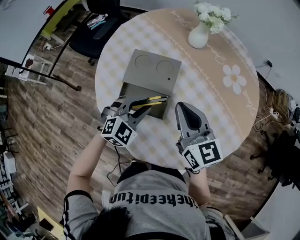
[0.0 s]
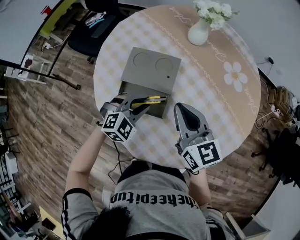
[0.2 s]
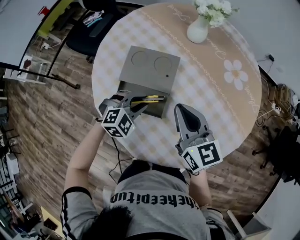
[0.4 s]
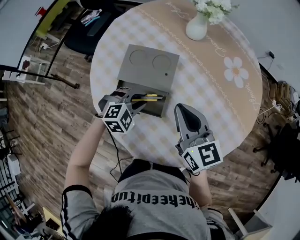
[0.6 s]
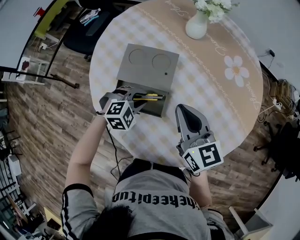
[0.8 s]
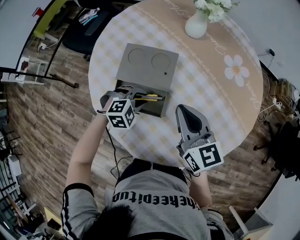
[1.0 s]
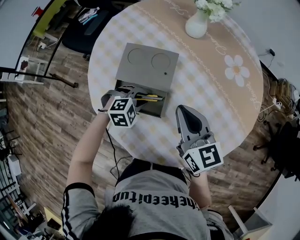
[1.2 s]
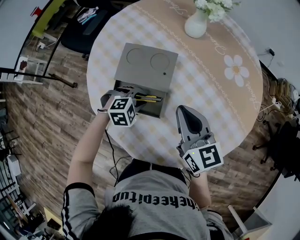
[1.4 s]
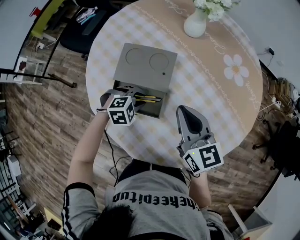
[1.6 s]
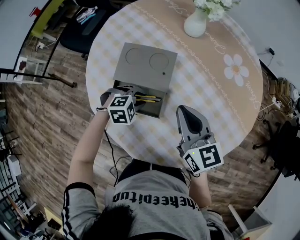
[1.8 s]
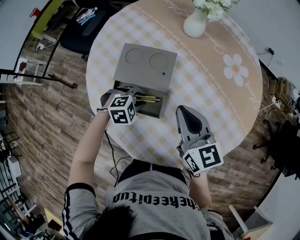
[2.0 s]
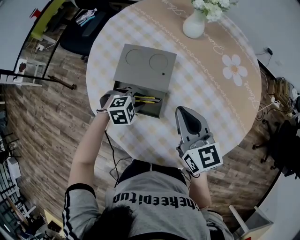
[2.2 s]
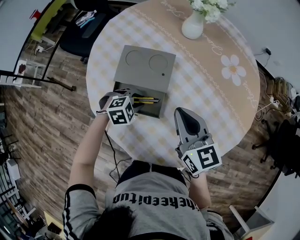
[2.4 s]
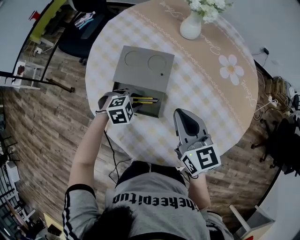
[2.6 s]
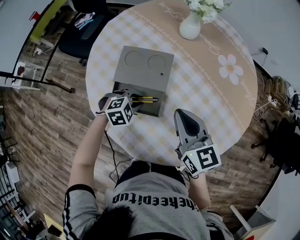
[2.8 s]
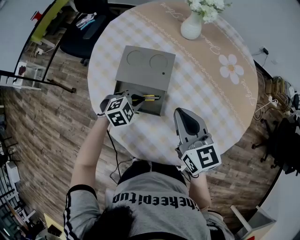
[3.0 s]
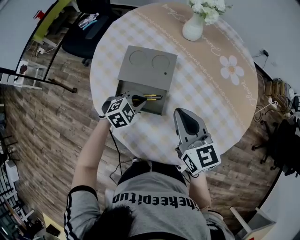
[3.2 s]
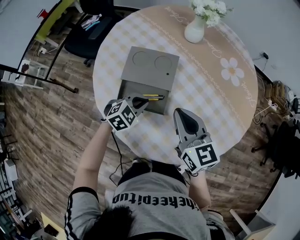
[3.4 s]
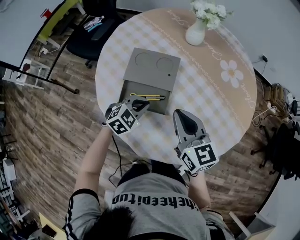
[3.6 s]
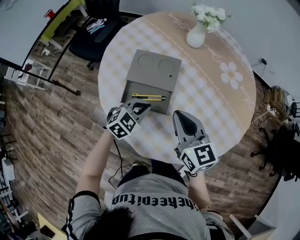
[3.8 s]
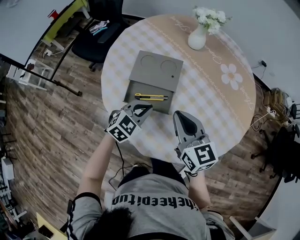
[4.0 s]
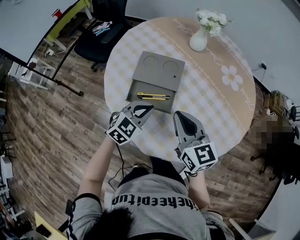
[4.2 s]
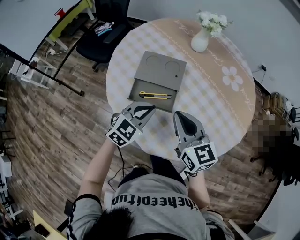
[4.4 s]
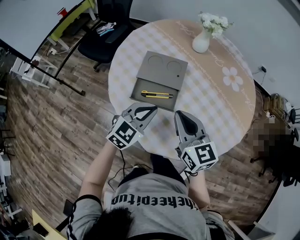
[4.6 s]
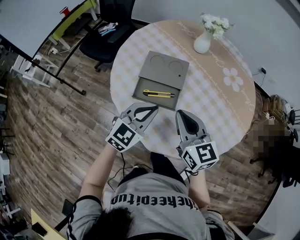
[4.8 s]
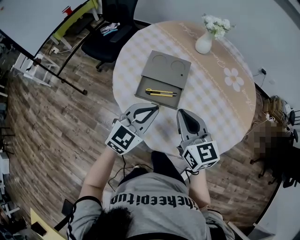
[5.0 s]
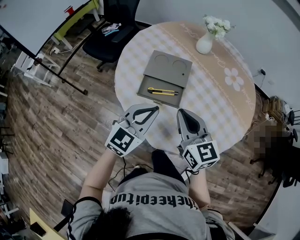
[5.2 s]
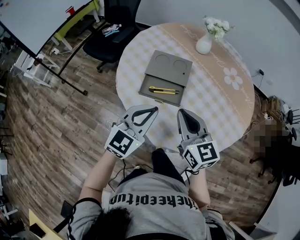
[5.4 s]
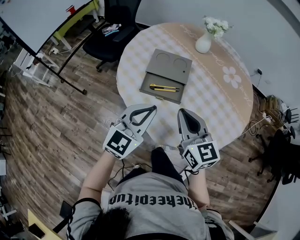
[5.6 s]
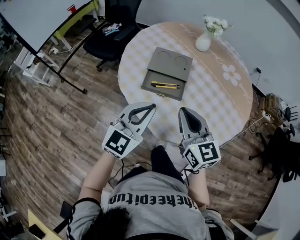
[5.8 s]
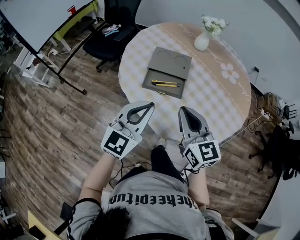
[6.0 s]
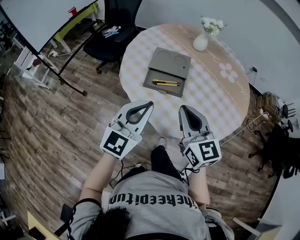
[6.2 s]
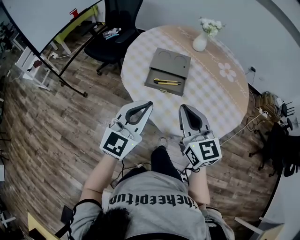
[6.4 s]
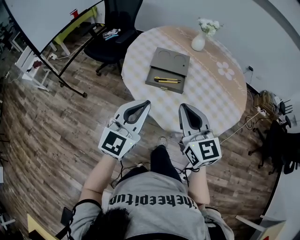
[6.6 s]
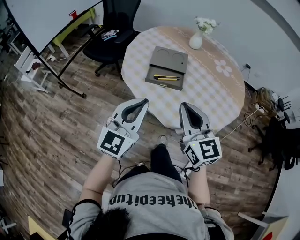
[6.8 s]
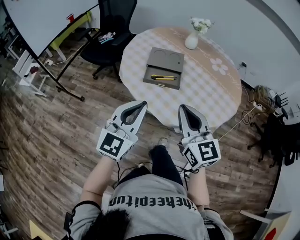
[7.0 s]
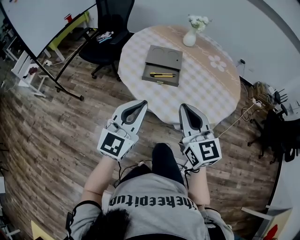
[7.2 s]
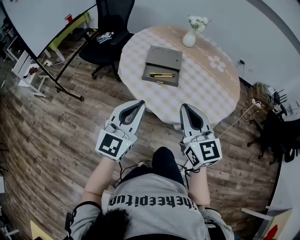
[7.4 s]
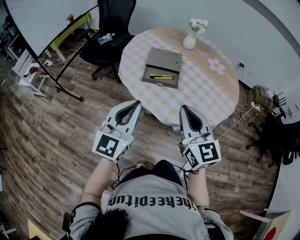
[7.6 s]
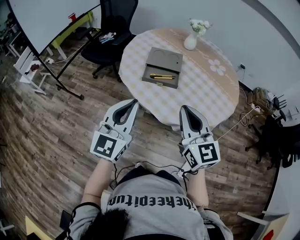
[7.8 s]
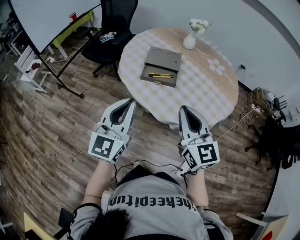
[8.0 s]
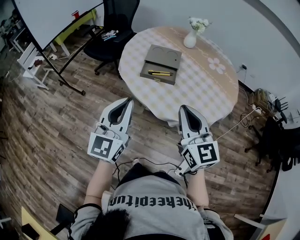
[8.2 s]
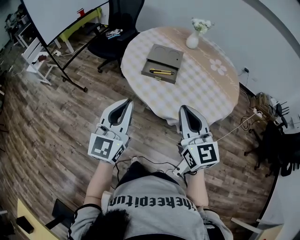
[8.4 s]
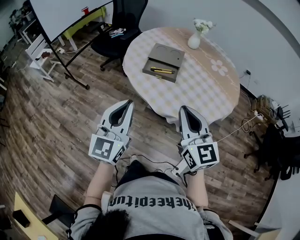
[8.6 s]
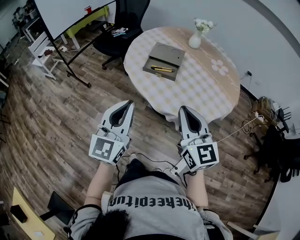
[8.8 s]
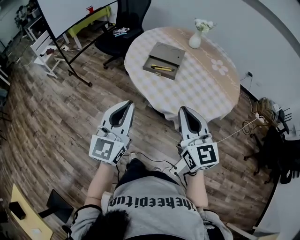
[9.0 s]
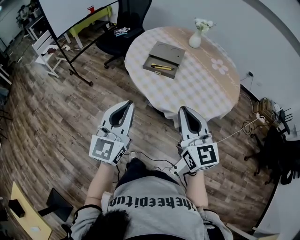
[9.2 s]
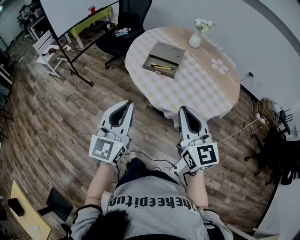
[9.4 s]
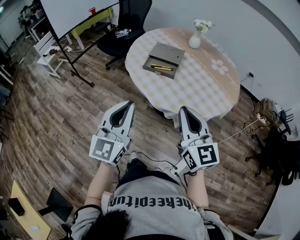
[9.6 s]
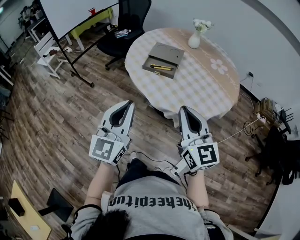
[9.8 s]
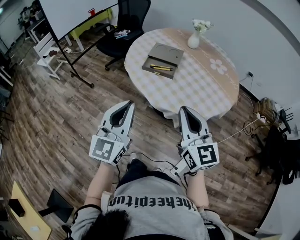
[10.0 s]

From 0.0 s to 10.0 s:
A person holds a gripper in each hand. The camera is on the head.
From 0.0 s to 1.4 s: The left gripper travels downward by some 15 cm, and rotates approximately 30 degrees.
From 1.4 s to 2.8 s: There are only small adjustments of the grippers.
From 2.8 s to 4.2 s: The right gripper travels backward by some 5 cm, while the left gripper travels upward and backward by approximately 15 cm, swivels approximately 40 degrees, and closes up.
From 4.2 s to 5.8 s: The right gripper shifts approximately 10 cm backward. Meanwhile the left gripper goes roughly 20 cm upward and backward, and rotates approximately 30 degrees.
From 5.8 s to 7.2 s: The right gripper is displaced backward by roughly 15 cm; the left gripper moves backward and to the left, some 15 cm.
From 7.2 s to 8.6 s: The right gripper travels backward and to the right by roughly 10 cm; the left gripper shifts approximately 10 cm backward.
From 8.6 s to 10.0 s: The grippers both shift backward by some 5 cm.

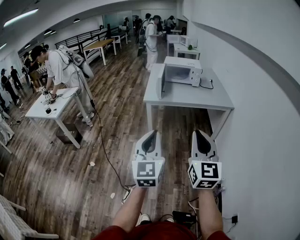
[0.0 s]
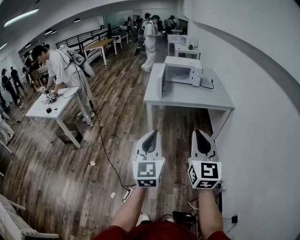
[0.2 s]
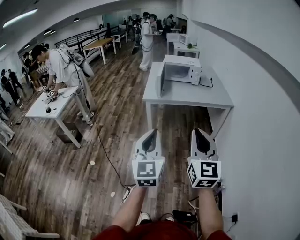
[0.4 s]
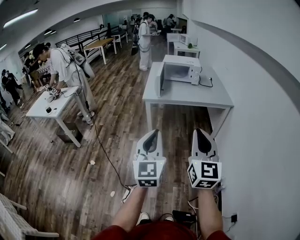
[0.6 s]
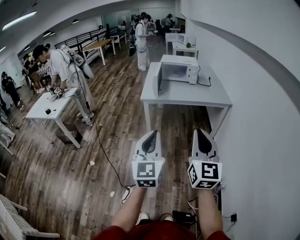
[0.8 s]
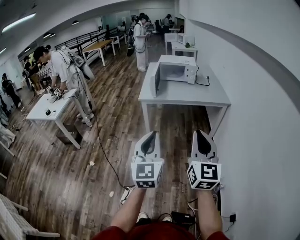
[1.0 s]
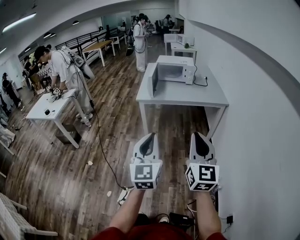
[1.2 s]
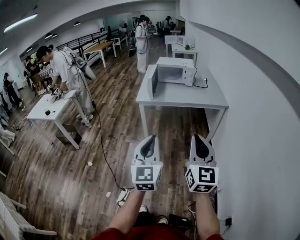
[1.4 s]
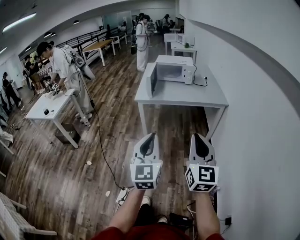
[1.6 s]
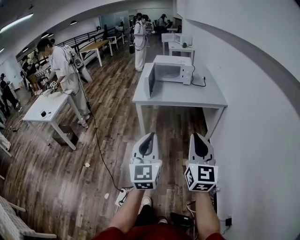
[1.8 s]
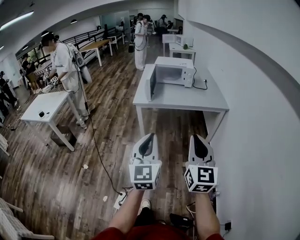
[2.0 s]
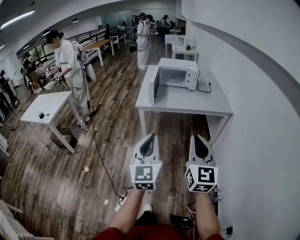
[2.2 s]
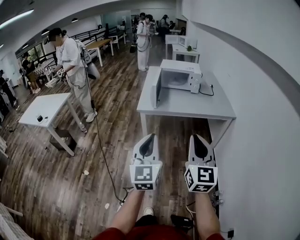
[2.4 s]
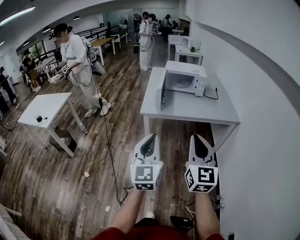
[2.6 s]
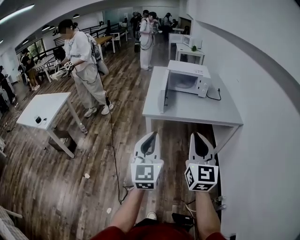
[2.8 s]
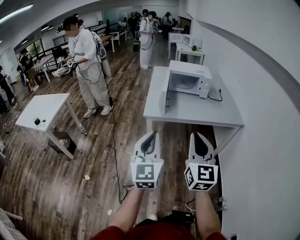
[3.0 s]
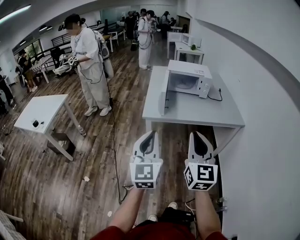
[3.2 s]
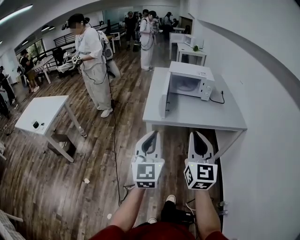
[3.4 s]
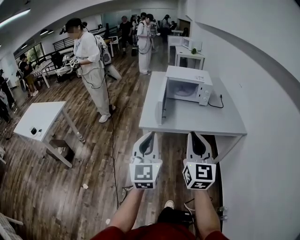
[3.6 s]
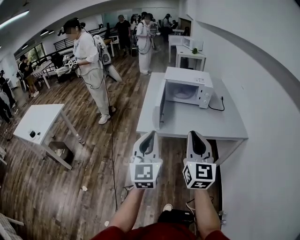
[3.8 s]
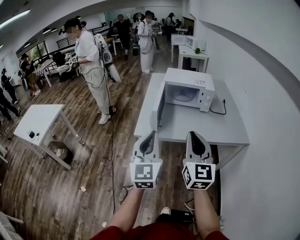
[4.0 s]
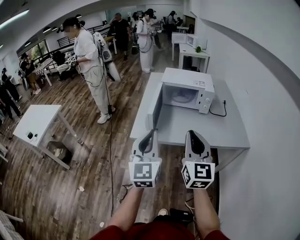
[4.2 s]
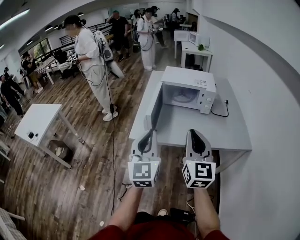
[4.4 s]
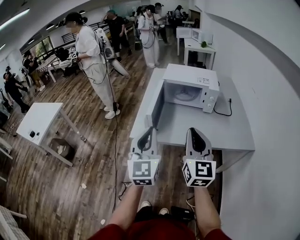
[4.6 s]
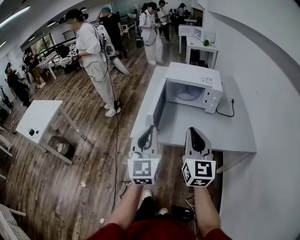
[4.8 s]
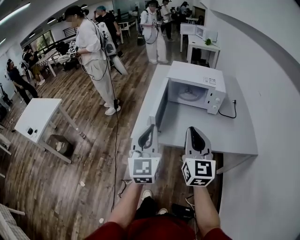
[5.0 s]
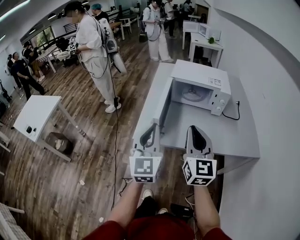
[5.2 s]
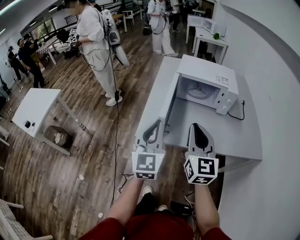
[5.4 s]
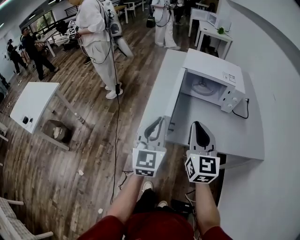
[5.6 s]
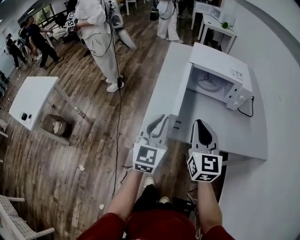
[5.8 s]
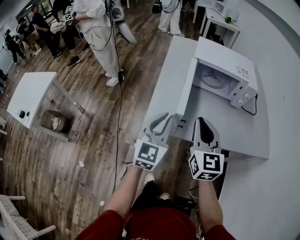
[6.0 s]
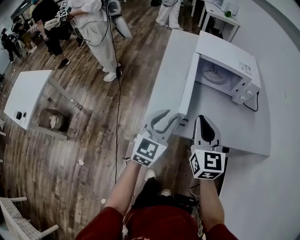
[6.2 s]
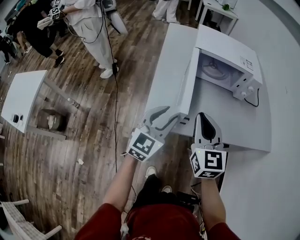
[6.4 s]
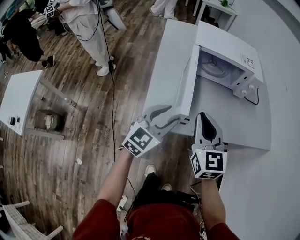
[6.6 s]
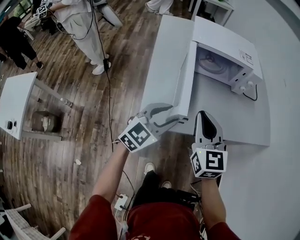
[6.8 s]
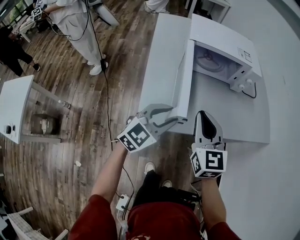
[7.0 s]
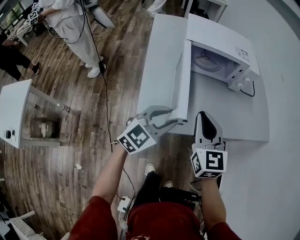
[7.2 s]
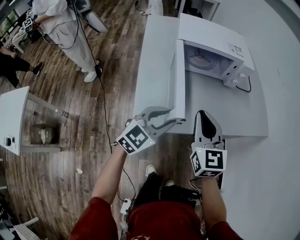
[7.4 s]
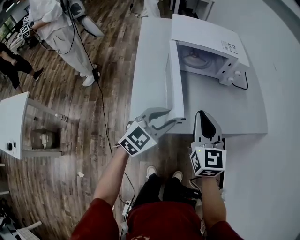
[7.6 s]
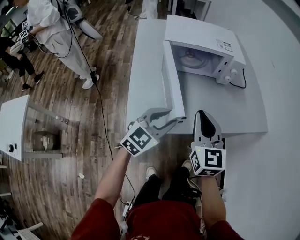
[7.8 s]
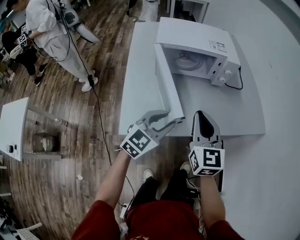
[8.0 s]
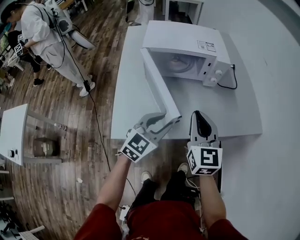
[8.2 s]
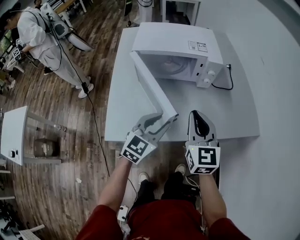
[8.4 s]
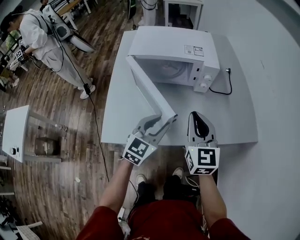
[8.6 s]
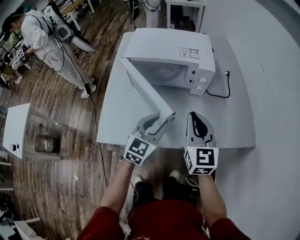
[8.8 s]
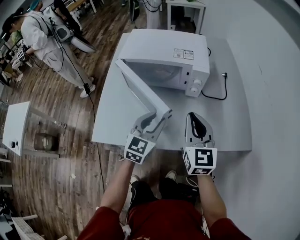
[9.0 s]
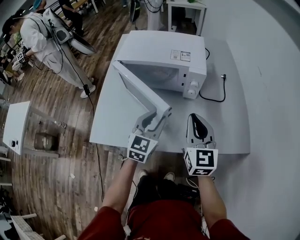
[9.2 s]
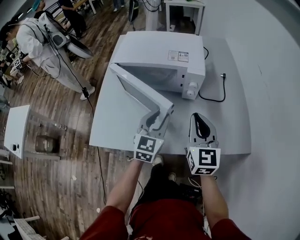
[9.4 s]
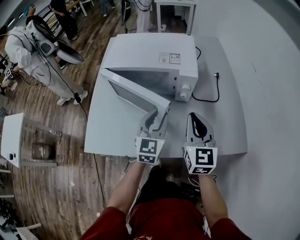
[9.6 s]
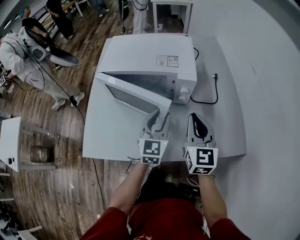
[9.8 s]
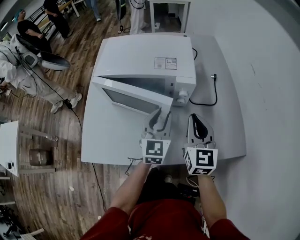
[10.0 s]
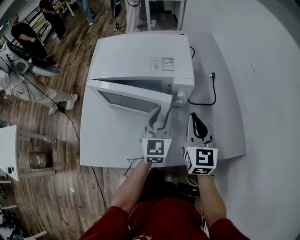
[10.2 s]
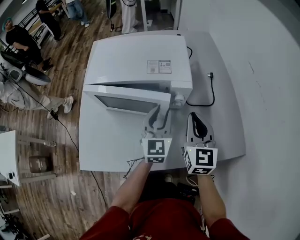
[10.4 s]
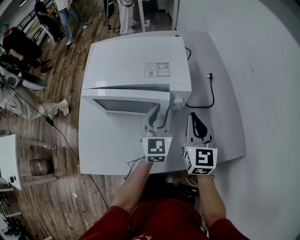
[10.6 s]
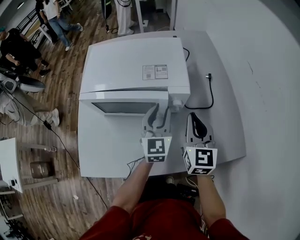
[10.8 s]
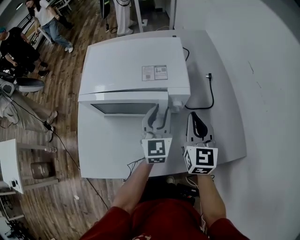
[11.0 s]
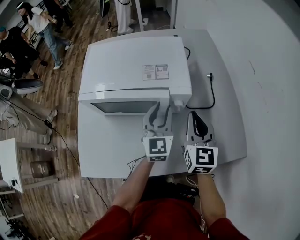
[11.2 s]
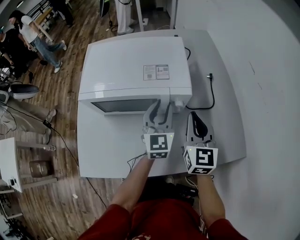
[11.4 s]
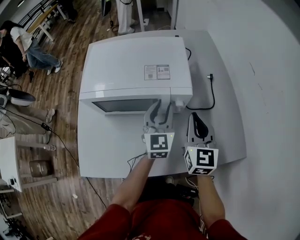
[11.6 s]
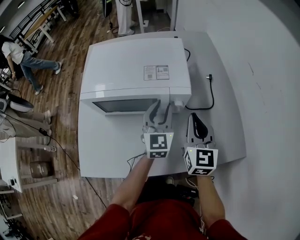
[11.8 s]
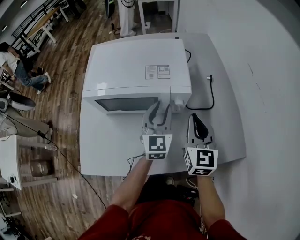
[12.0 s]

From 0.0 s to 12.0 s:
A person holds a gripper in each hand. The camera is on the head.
From 0.0 s to 1.6 s: The grippers both shift to the right by roughly 10 cm.
From 1.6 s to 3.0 s: Both grippers travel together forward and to the left, approximately 30 cm.
From 3.0 s to 4.4 s: Both grippers move forward, about 25 cm.
From 4.4 s to 6.0 s: The right gripper shifts approximately 25 cm forward, to the left and downward, while the left gripper moves forward, downward and to the left, some 25 cm.
From 6.0 s to 7.6 s: The left gripper is displaced downward by some 10 cm, changes its angle by approximately 40 degrees, and opens its fingers. Meanwhile the right gripper shifts by about 5 cm.
From 7.6 s to 9.0 s: Both grippers travel together to the right and forward, approximately 25 cm. The left gripper turns by about 30 degrees.
From 9.0 s to 10.4 s: Both grippers travel together forward and to the right, about 15 cm.
From 10.4 s to 12.0 s: There are only small adjustments of the grippers.

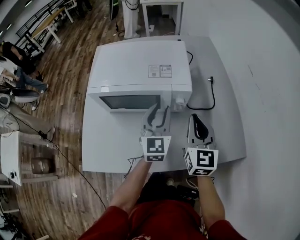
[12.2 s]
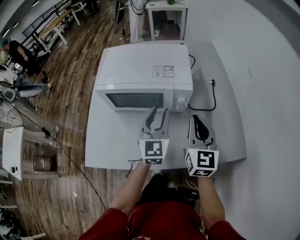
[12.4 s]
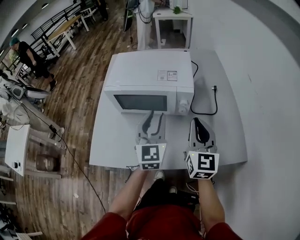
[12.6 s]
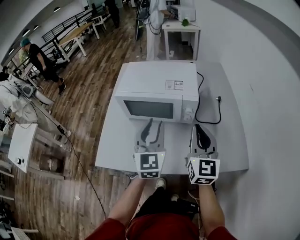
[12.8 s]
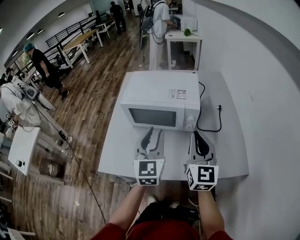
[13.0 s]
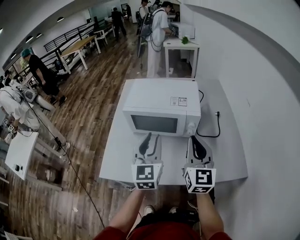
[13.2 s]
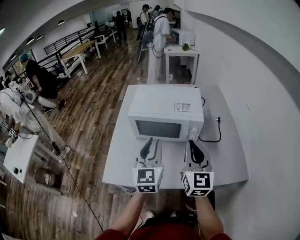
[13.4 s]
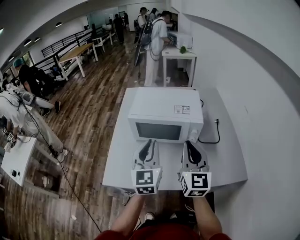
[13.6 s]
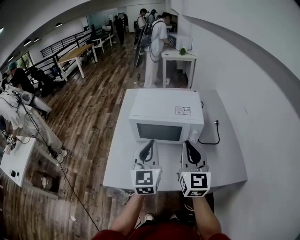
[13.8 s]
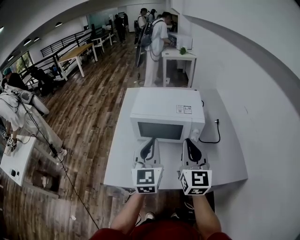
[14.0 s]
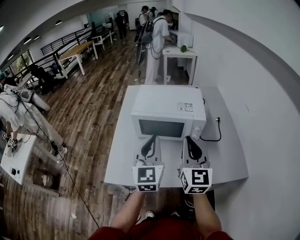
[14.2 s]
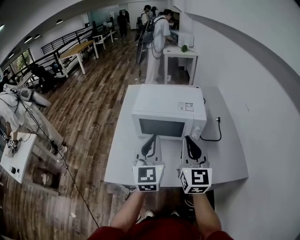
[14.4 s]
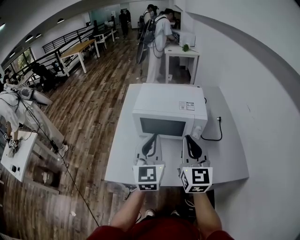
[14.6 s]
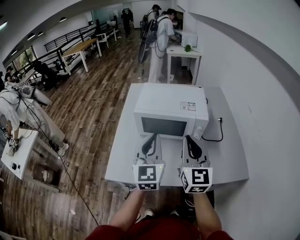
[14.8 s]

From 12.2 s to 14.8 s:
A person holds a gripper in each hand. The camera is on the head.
From 12.2 s to 13.4 s: The right gripper travels upward, to the left and backward by some 20 cm; the left gripper travels backward, to the left and upward by about 25 cm.
From 13.4 s to 14.8 s: The right gripper moves to the left, about 5 cm; the left gripper closes its fingers.
